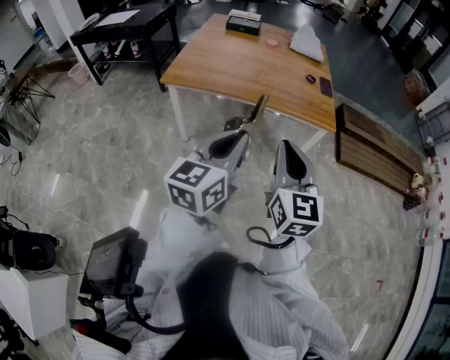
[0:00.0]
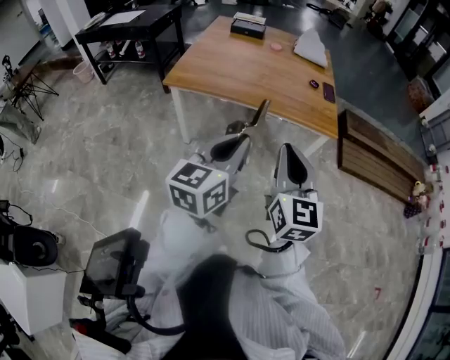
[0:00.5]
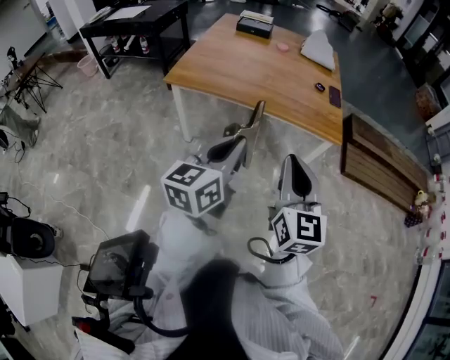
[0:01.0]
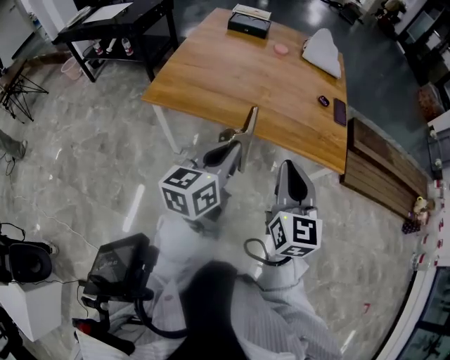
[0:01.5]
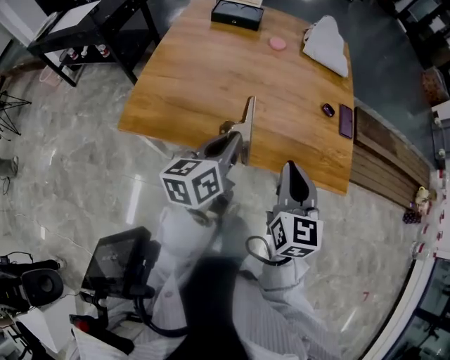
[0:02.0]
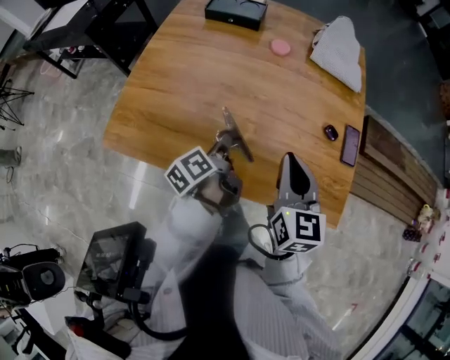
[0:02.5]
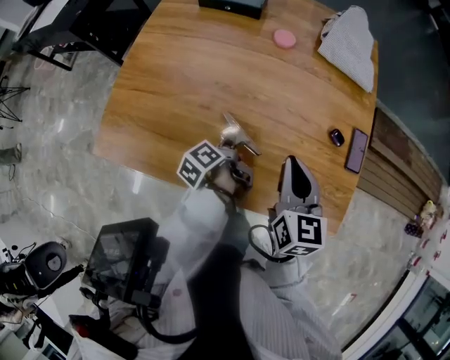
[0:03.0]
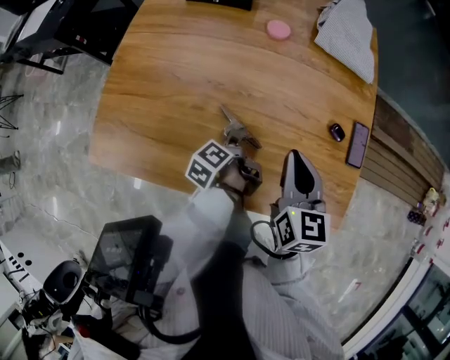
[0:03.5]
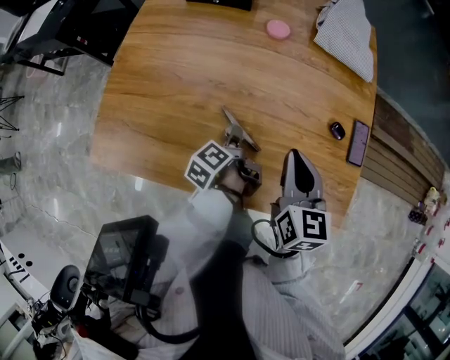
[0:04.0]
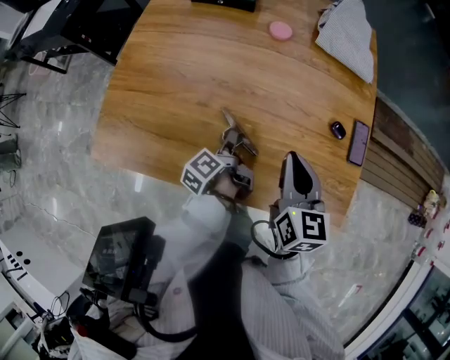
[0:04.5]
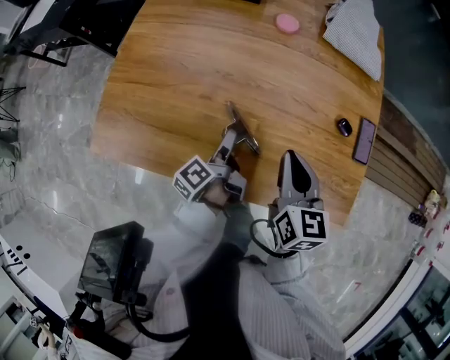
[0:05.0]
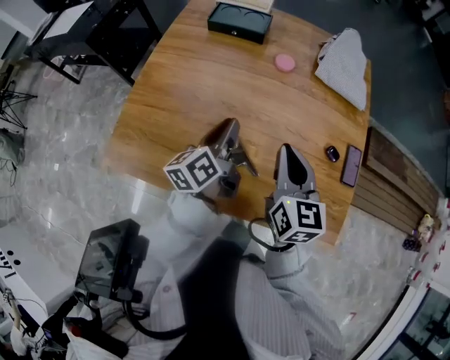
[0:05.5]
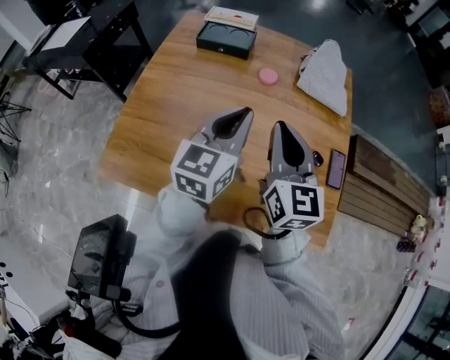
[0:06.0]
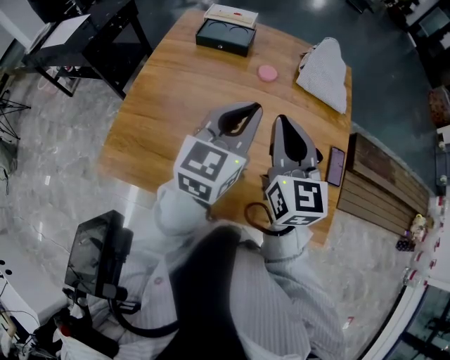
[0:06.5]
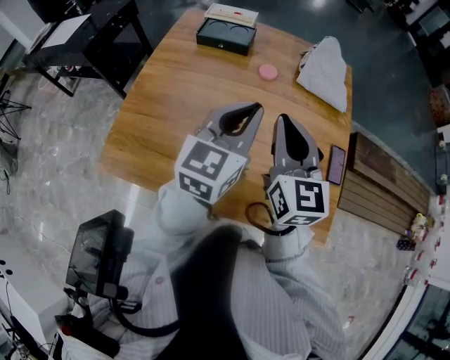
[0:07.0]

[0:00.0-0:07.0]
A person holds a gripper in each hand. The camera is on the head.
0:00.0 to 0:02.0: Both grippers travel together forward, some 40 cm. The left gripper swivels some 20 degrees.
0:02.0 to 0:03.5: The left gripper travels downward and forward by roughly 30 cm, and rolls counterclockwise, seen from behind, by some 50 degrees; the right gripper heads forward, covering some 20 cm.
0:03.5 to 0:05.0: The left gripper opens up.
0:05.0 to 0:07.0: The right gripper goes approximately 15 cm upward, and rotates approximately 30 degrees, while the left gripper shifts roughly 30 cm upward, rotates around the line of its fingers by roughly 80 degrees, clockwise from behind, and closes.

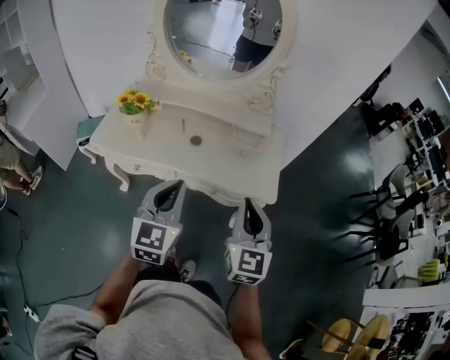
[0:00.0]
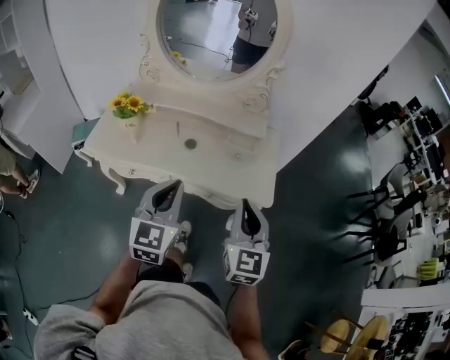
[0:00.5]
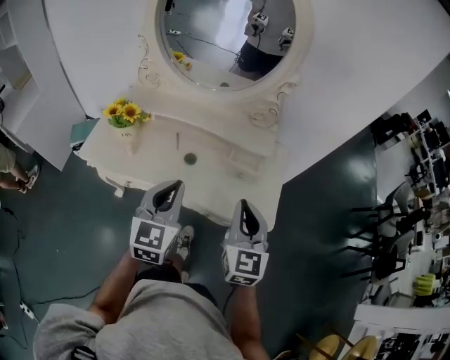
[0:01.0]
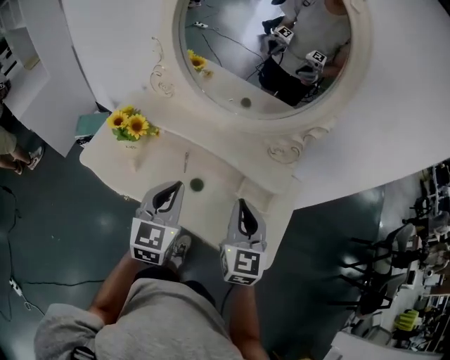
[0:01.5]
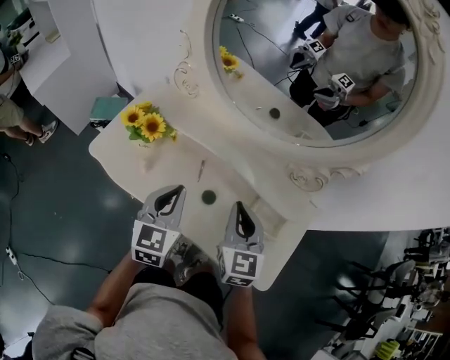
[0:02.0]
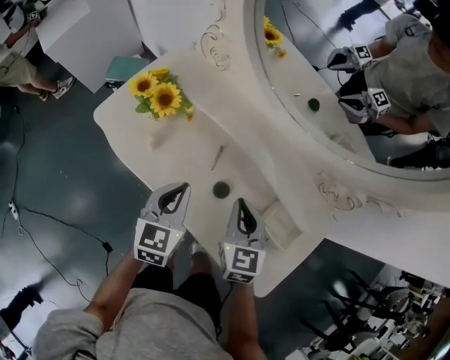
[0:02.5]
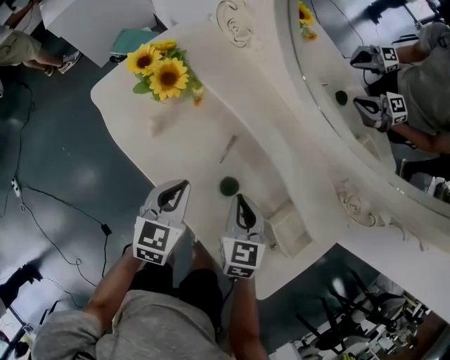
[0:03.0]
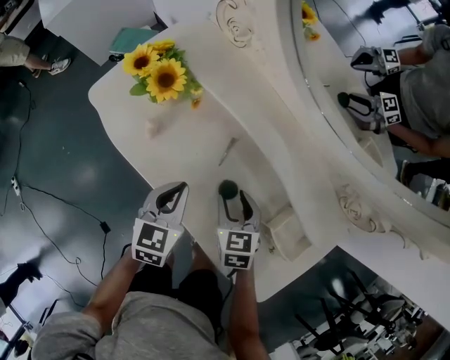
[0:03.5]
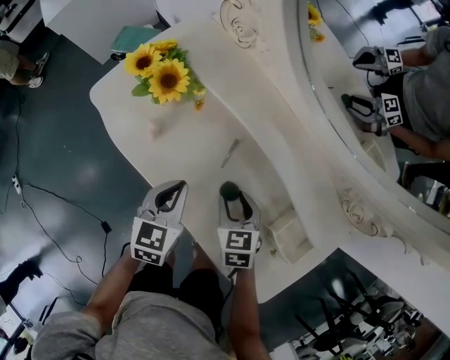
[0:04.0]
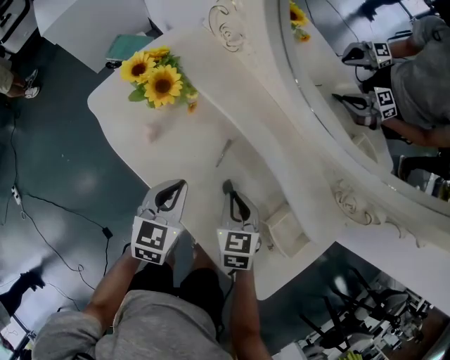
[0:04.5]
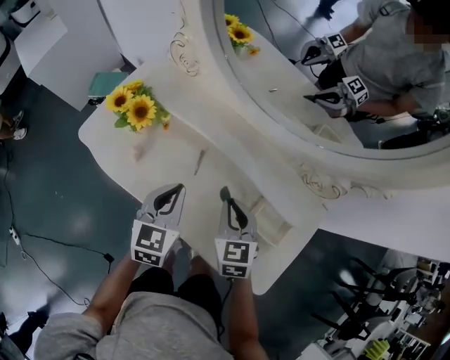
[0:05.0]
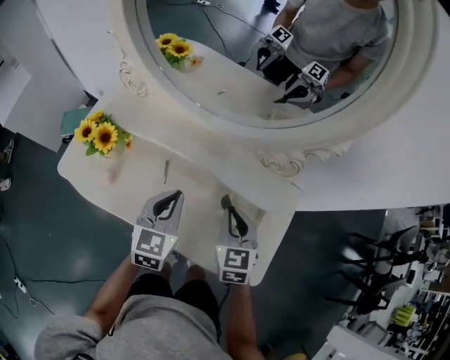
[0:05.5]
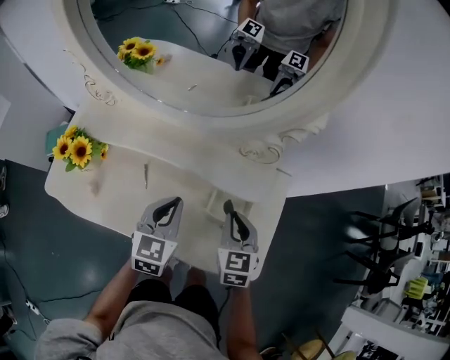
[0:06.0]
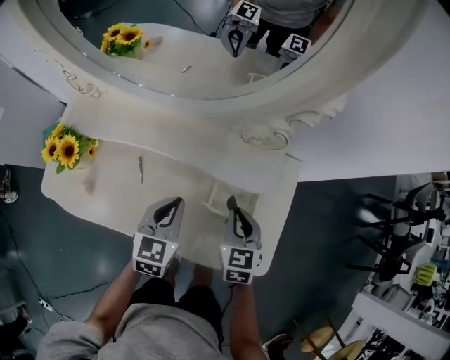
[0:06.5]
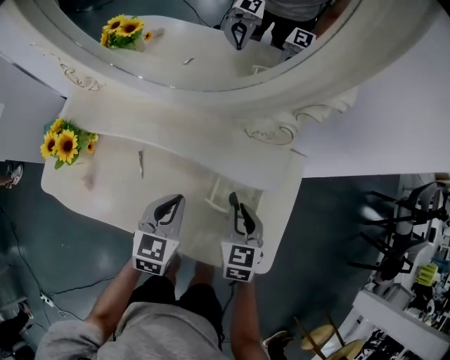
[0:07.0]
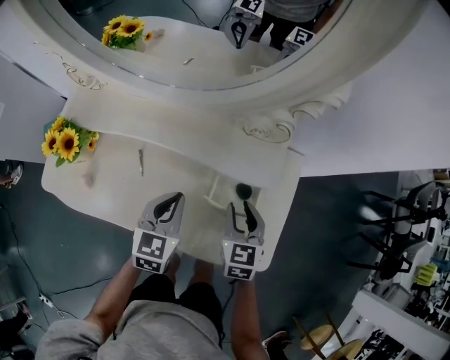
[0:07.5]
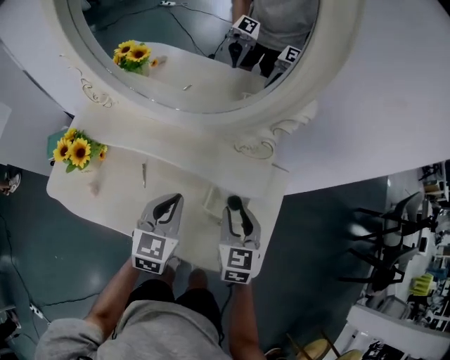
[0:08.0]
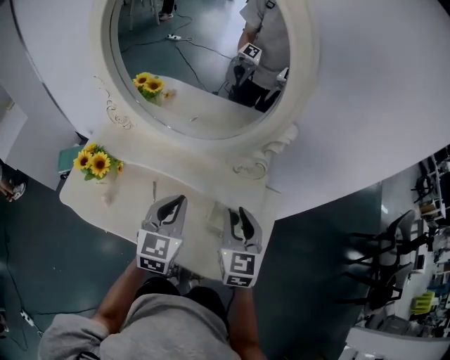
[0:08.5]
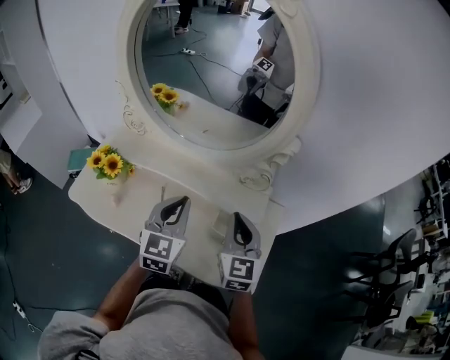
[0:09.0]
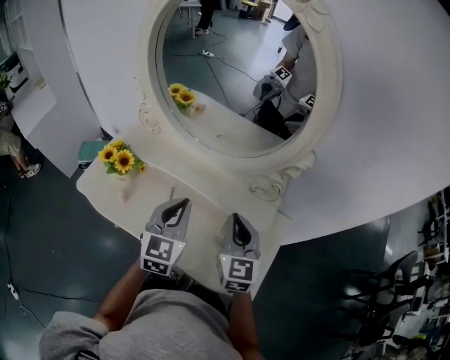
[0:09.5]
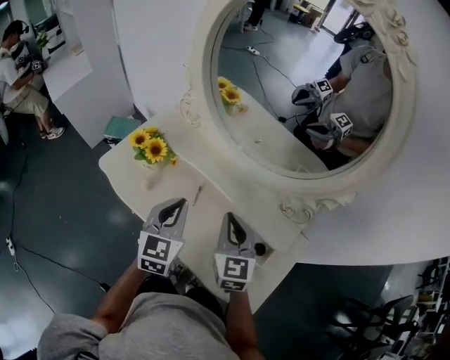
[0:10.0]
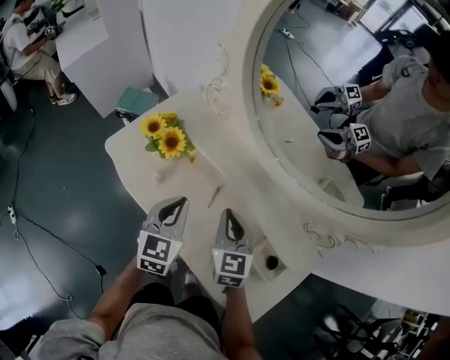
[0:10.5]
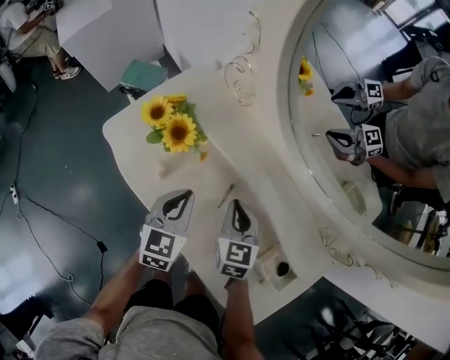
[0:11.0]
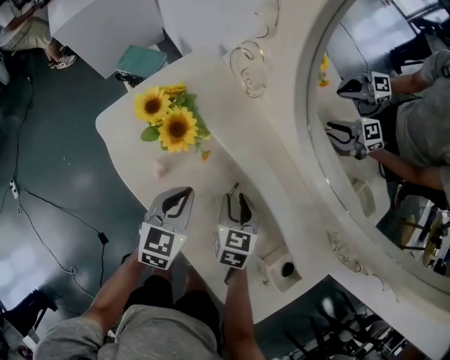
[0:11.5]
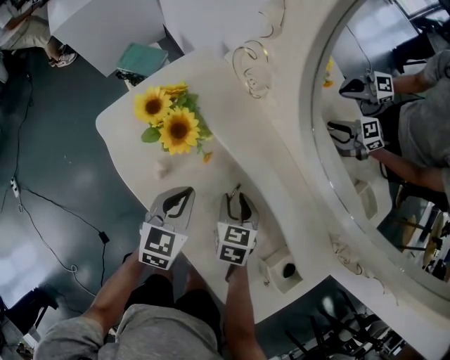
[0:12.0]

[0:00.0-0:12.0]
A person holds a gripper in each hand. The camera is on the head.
0:00.0 to 0:02.0: Both grippers move forward, some 30 cm. The right gripper rotates about 30 degrees. The left gripper turns by roughly 20 degrees.
0:02.0 to 0:04.0: Both grippers move downward, about 20 cm. The right gripper turns by about 40 degrees, and opens up. Meanwhile the left gripper turns by some 20 degrees.
0:04.0 to 0:06.0: The right gripper shifts by approximately 25 cm, rotates about 40 degrees, and closes its fingers. Meanwhile the left gripper shifts by roughly 25 cm, and rotates approximately 30 degrees.
0:06.0 to 0:08.0: The right gripper travels downward and back again, about 5 cm each way, and opens up. Meanwhile the left gripper travels downward and back again, roughly 5 cm each way.
0:08.0 to 0:10.0: The right gripper changes place by roughly 20 cm, changes its angle by roughly 30 degrees, and closes. Meanwhile the left gripper ends up approximately 15 cm from where it was, and rotates about 30 degrees.
0:10.0 to 0:12.0: The right gripper heads downward and forward, covering about 30 cm, points its fingers about 30 degrees further downward, and opens; the left gripper travels downward and to the left by approximately 20 cm, and rotates roughly 20 degrees.

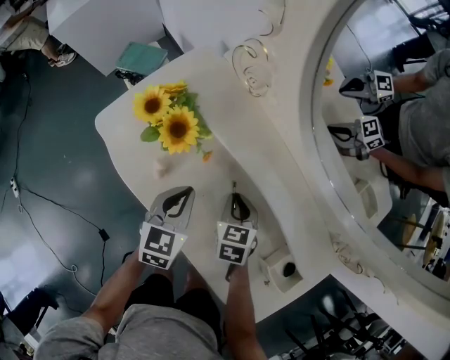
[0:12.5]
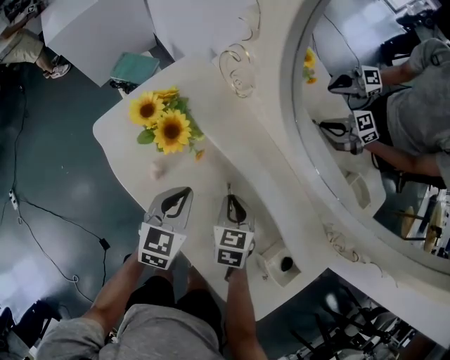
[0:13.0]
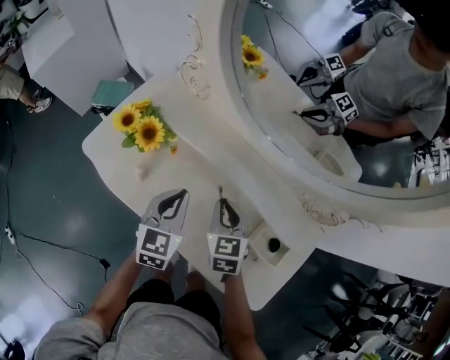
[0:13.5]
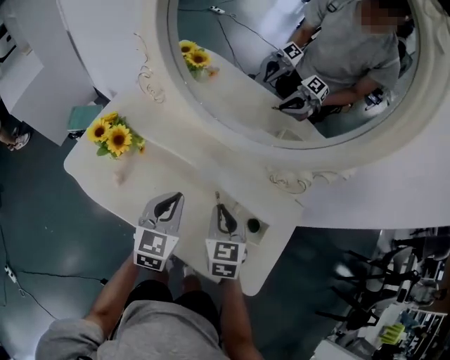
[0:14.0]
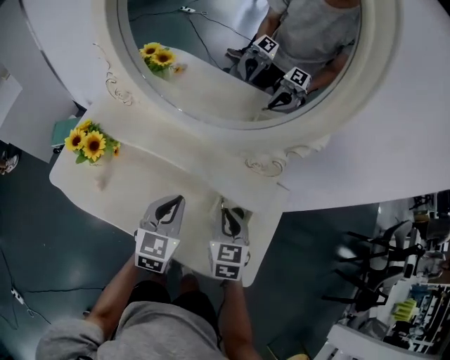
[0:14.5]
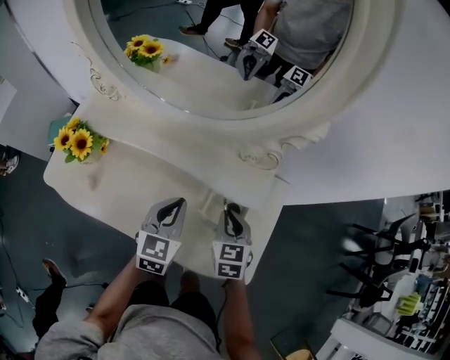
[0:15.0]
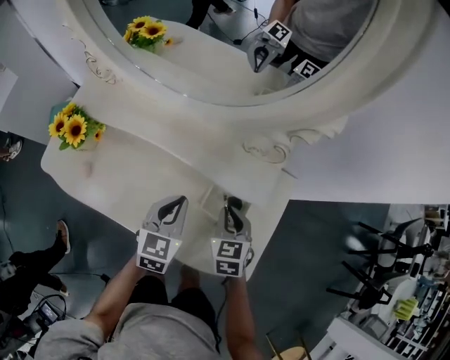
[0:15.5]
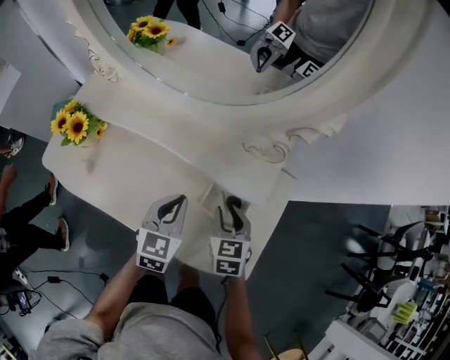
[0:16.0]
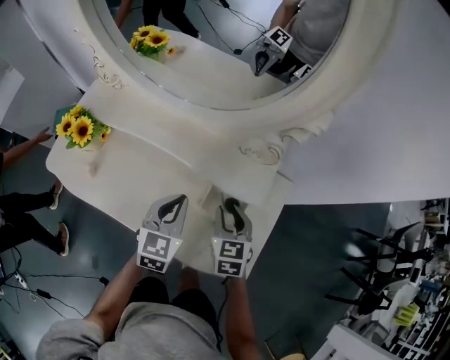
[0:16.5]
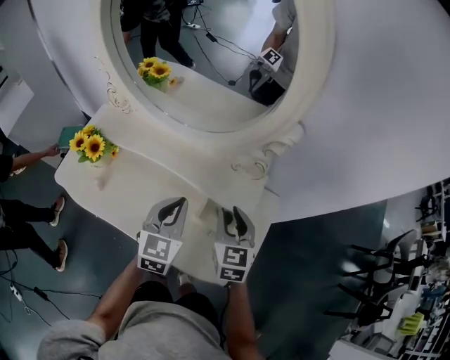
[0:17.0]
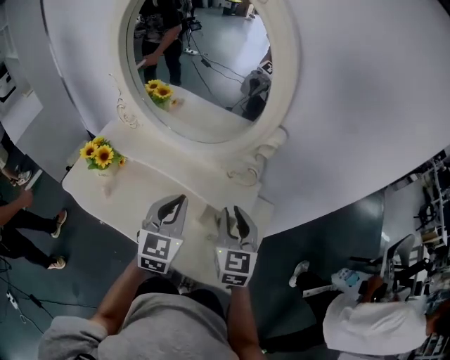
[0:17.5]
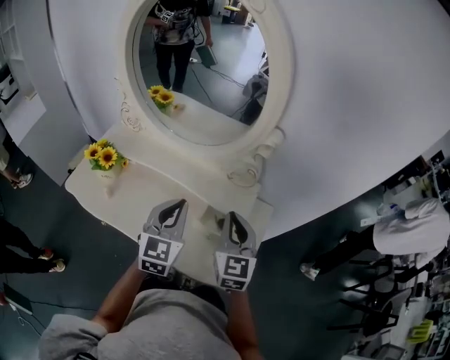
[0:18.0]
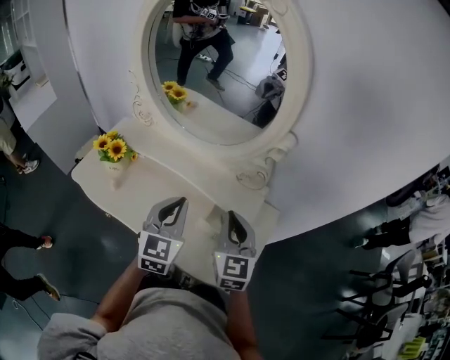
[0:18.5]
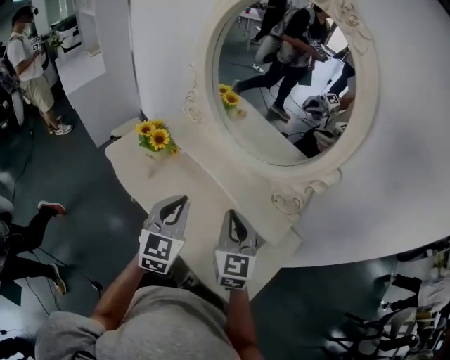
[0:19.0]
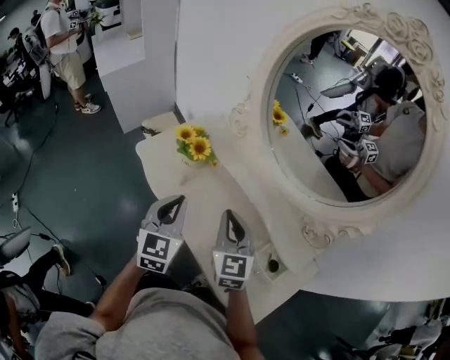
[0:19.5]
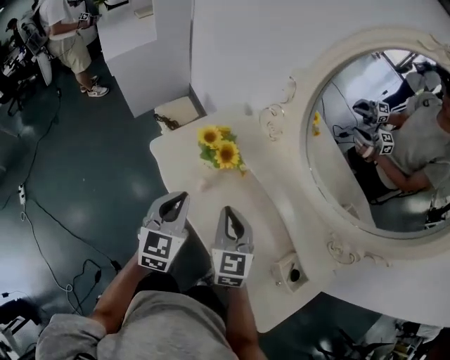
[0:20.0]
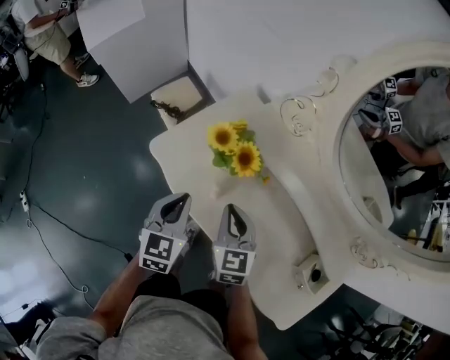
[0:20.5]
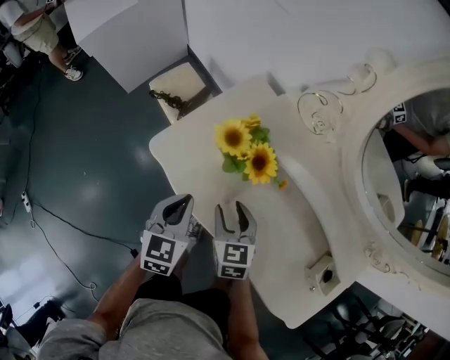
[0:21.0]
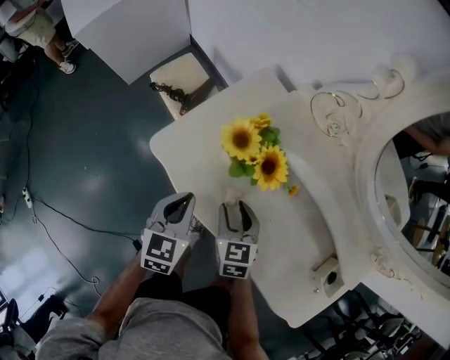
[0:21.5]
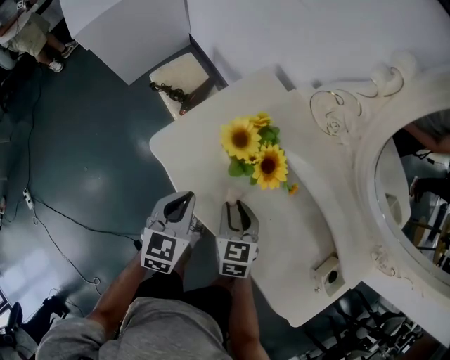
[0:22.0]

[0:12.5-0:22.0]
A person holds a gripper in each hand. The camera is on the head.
0:12.5 to 0:14.5: The right gripper moves some 30 cm, and rotates roughly 30 degrees; the left gripper ends up roughly 25 cm from where it was, and swivels approximately 30 degrees.
0:14.5 to 0:16.5: Both grippers move to the right, approximately 5 cm. The right gripper opens its fingers.
0:16.5 to 0:18.0: The two grippers go approximately 15 cm upward. The right gripper turns by about 30 degrees, and closes up.
0:18.0 to 0:20.0: The left gripper moves approximately 35 cm, and turns by about 30 degrees. Meanwhile the right gripper ends up roughly 40 cm from where it was, and swivels some 40 degrees.
0:20.0 to 0:22.0: The right gripper goes some 20 cm downward and to the left, changes its angle by roughly 20 degrees, and opens its fingers; the left gripper is displaced downward, to the left and forward by some 20 cm.
